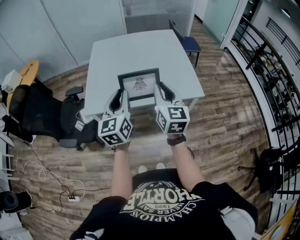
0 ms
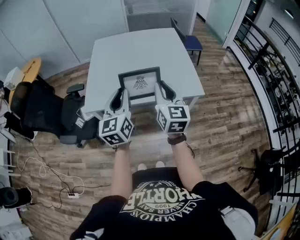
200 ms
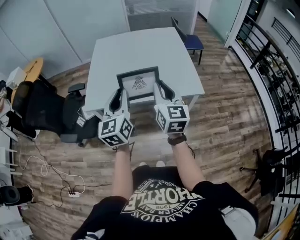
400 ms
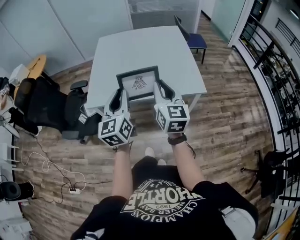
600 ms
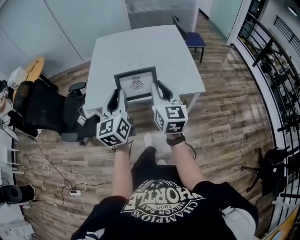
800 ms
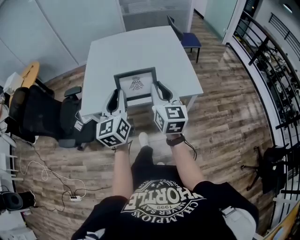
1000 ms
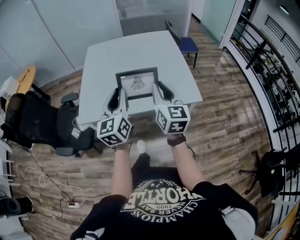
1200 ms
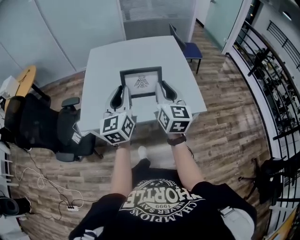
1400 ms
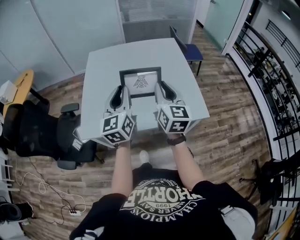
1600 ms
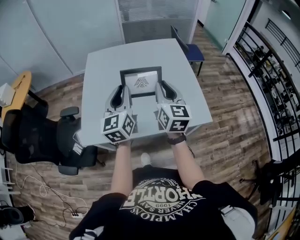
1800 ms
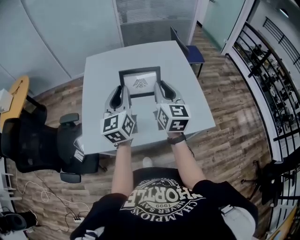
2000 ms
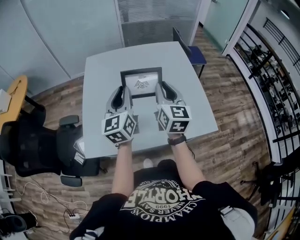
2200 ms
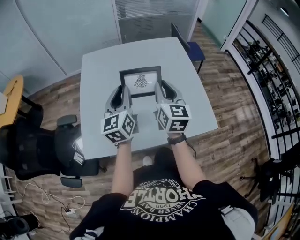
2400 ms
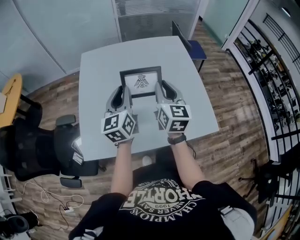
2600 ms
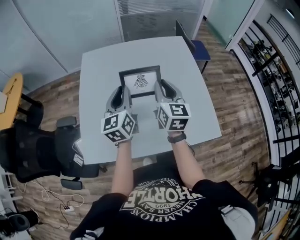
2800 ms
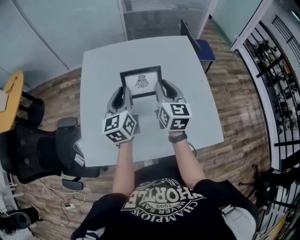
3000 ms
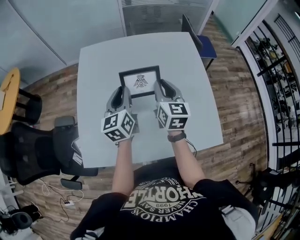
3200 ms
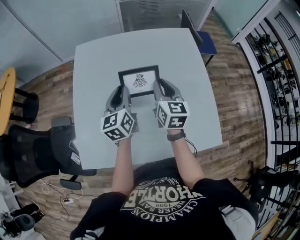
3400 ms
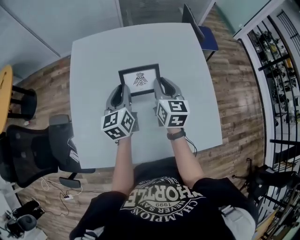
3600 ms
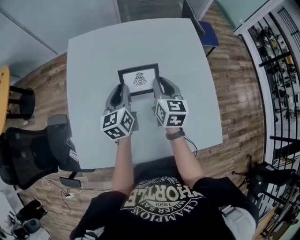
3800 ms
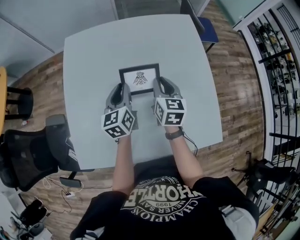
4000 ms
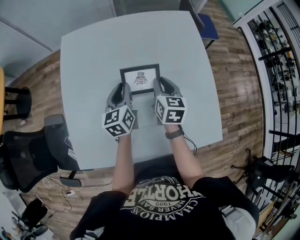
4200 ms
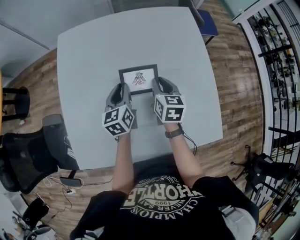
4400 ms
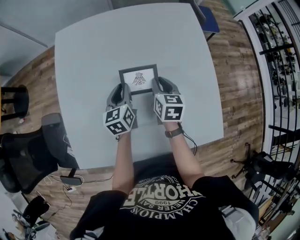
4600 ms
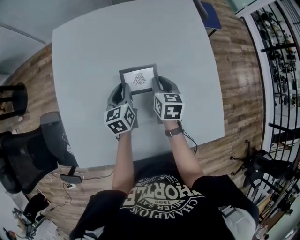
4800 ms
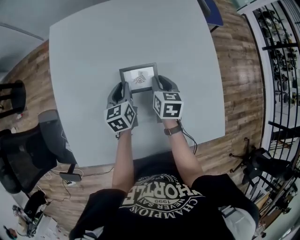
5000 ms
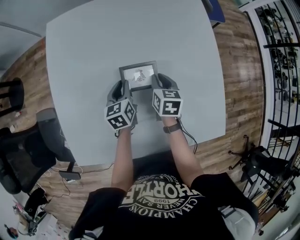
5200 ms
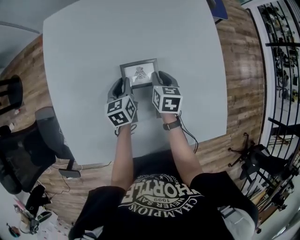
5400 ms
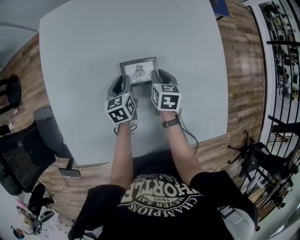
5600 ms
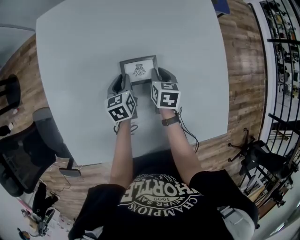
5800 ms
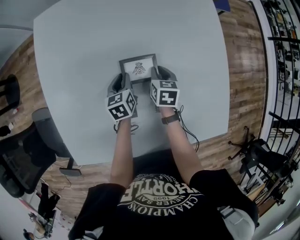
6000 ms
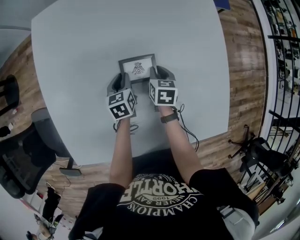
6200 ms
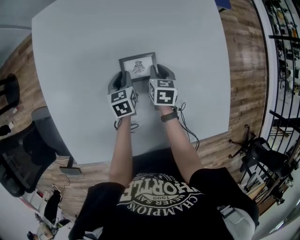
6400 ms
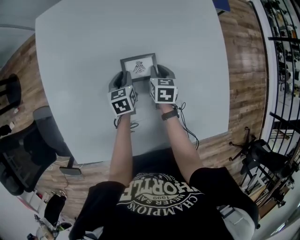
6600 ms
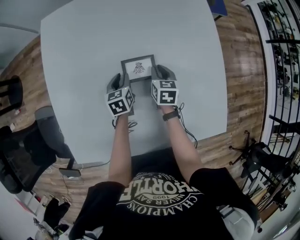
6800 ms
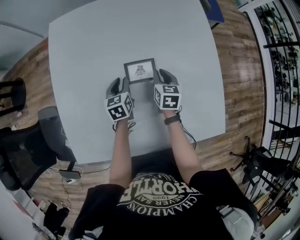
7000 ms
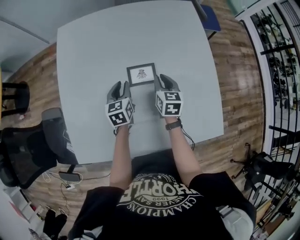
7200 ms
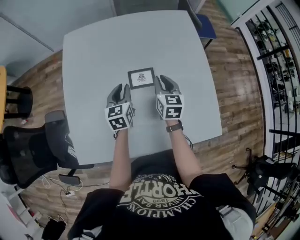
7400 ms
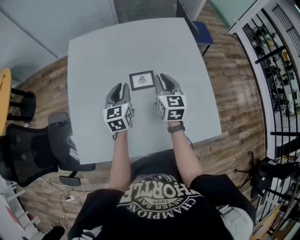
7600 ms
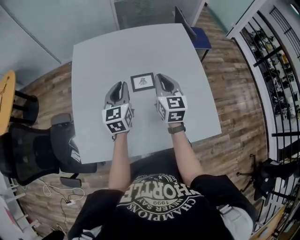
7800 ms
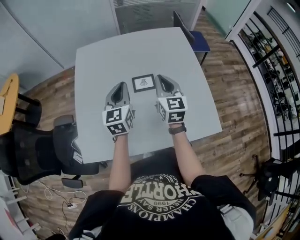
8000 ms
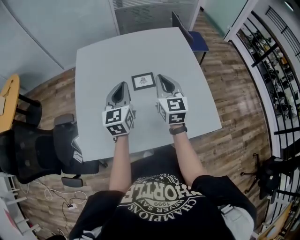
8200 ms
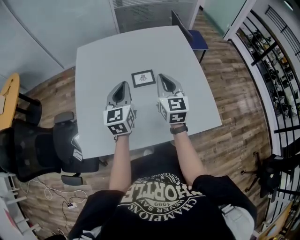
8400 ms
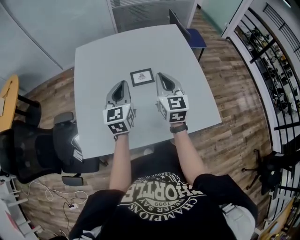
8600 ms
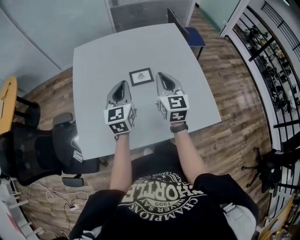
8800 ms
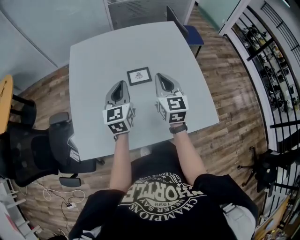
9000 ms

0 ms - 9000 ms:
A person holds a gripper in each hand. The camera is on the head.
0 ms - 1600 ms: The two grippers go roughly 20 cm forward.
1600 ms - 3000 ms: The grippers both shift forward by some 35 cm.
3000 ms - 4400 ms: The grippers both shift downward and forward by approximately 25 cm. The right gripper rotates roughly 20 degrees.
4400 ms - 6000 ms: Both grippers move downward, approximately 20 cm. The left gripper changes its angle by approximately 20 degrees.
6000 ms - 7600 ms: The two grippers go approximately 30 cm upward and backward. The left gripper turns by roughly 30 degrees, while the right gripper points its fingers some 30 degrees further upward.
7600 ms - 9000 ms: Both grippers move backward and upward, about 10 cm.

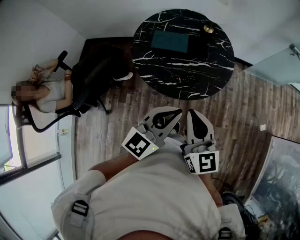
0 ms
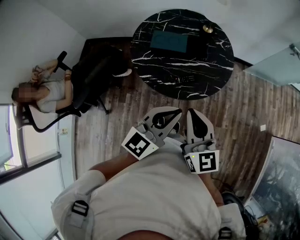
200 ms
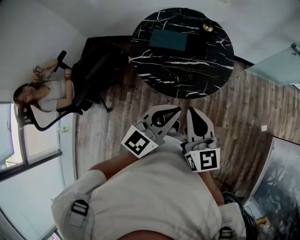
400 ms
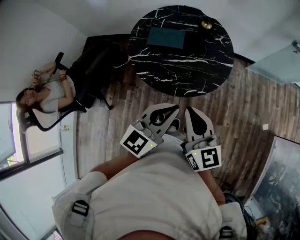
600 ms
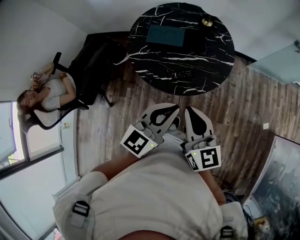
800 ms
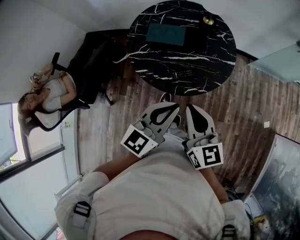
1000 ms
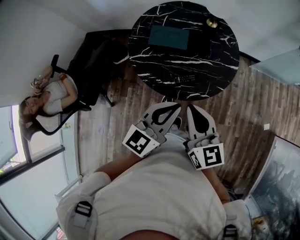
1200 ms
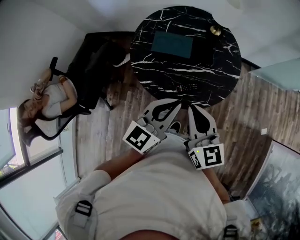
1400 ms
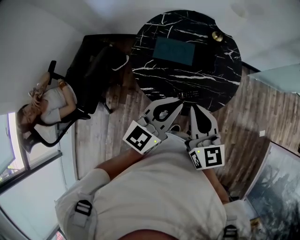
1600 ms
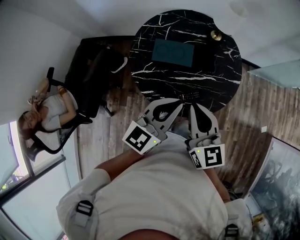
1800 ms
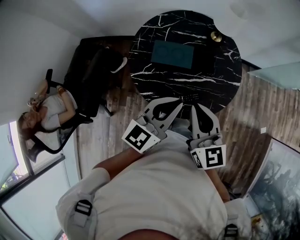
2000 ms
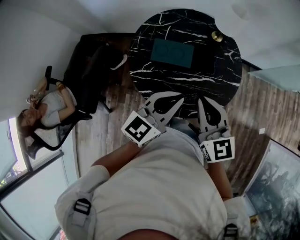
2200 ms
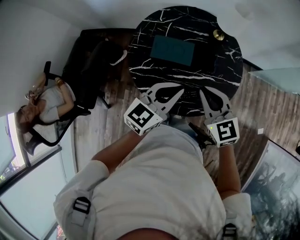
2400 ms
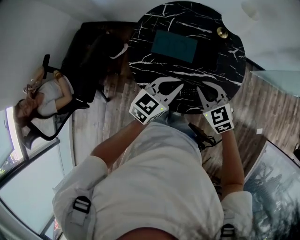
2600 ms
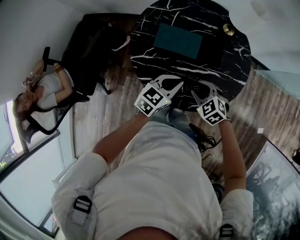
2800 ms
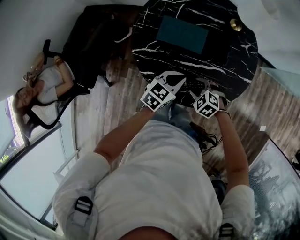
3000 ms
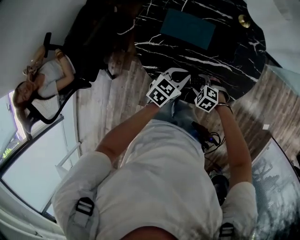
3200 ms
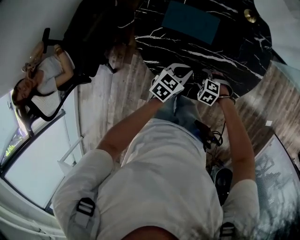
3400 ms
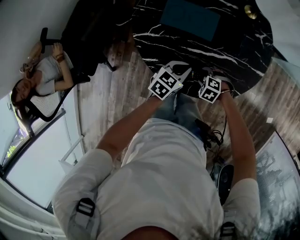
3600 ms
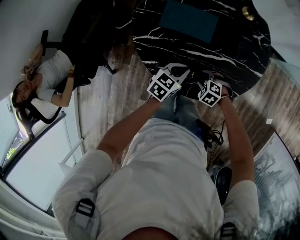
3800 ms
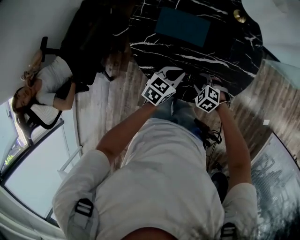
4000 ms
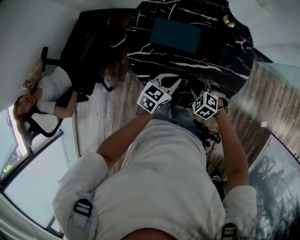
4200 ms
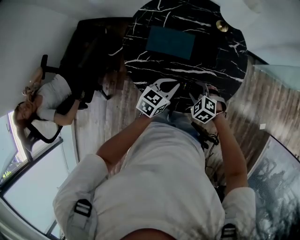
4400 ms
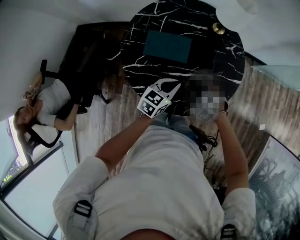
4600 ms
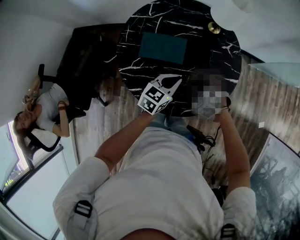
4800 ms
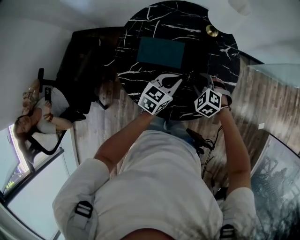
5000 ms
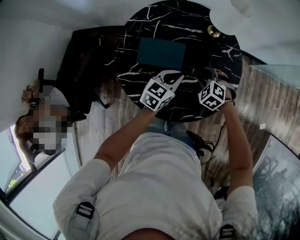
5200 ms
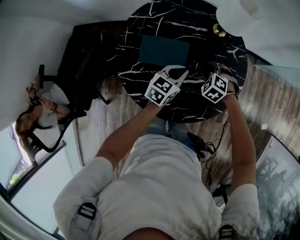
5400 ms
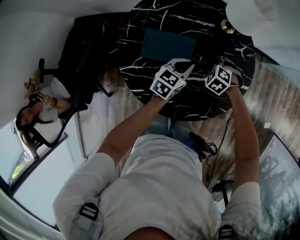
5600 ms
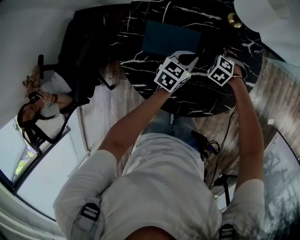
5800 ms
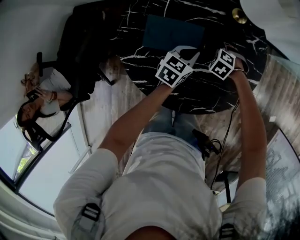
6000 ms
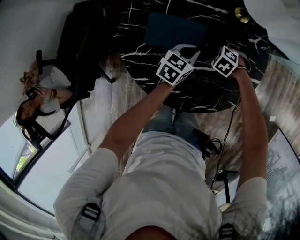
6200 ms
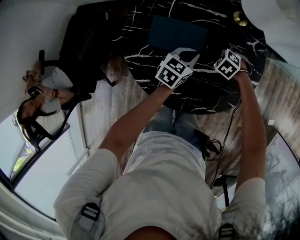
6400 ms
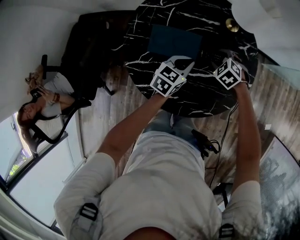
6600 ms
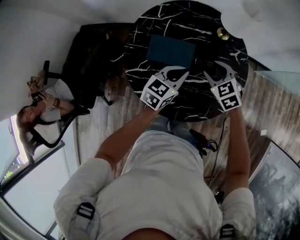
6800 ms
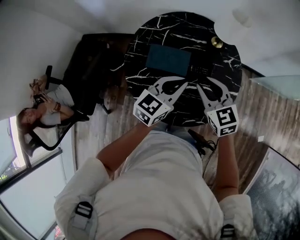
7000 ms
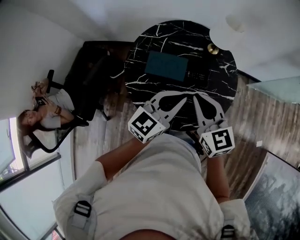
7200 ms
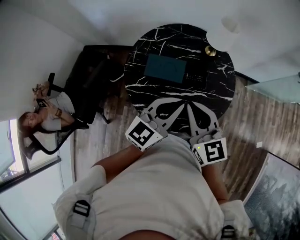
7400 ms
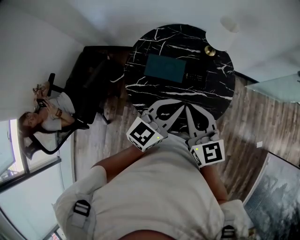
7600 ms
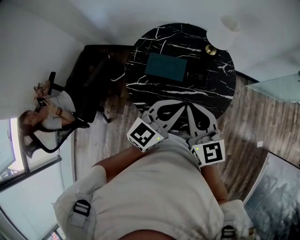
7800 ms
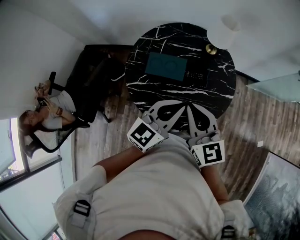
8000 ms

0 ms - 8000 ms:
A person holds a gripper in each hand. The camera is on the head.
0 ms - 1600 ms: Both grippers travel together forward, about 15 cm.
1600 ms - 3200 ms: Both grippers travel together downward, some 35 cm. The left gripper tilts its fingers approximately 30 degrees downward. Meanwhile the right gripper angles its fingers downward, by approximately 60 degrees, and opens.
3200 ms - 4800 ms: The right gripper moves upward, some 10 cm, and rotates about 20 degrees; the left gripper heads upward, covering about 5 cm.
4800 ms - 6400 ms: The left gripper moves about 15 cm, while the right gripper changes place by about 20 cm.
6400 ms - 8000 ms: The grippers both shift upward by some 35 cm. The right gripper angles its fingers upward, by about 60 degrees, and closes, while the left gripper changes its angle by approximately 30 degrees.

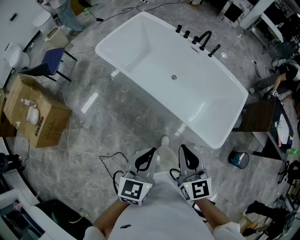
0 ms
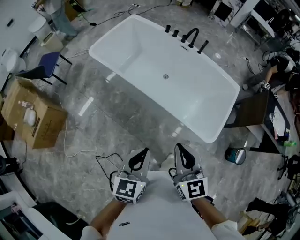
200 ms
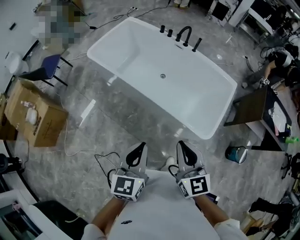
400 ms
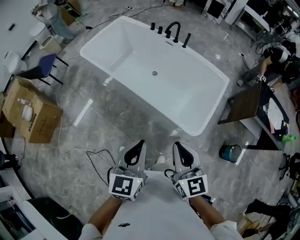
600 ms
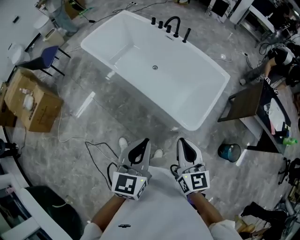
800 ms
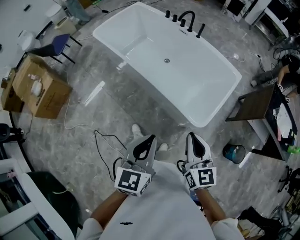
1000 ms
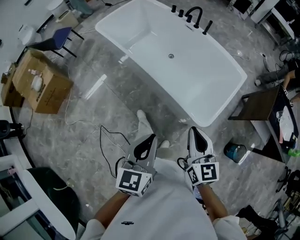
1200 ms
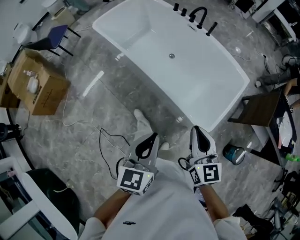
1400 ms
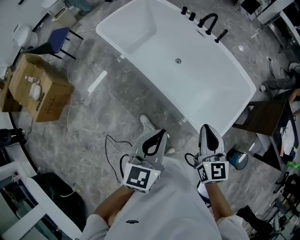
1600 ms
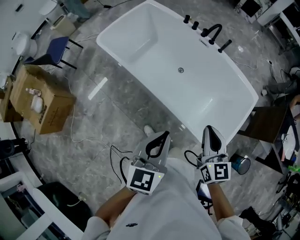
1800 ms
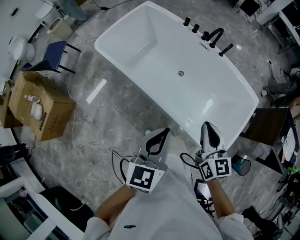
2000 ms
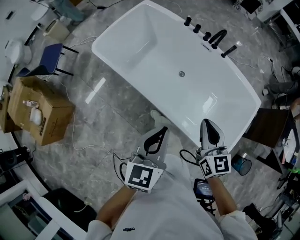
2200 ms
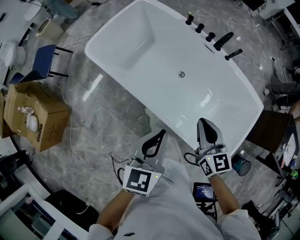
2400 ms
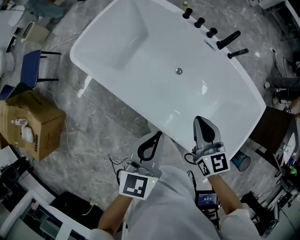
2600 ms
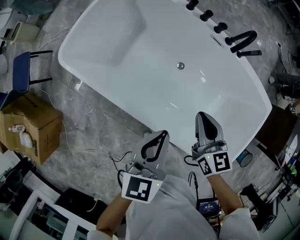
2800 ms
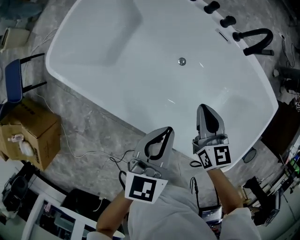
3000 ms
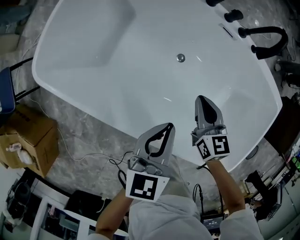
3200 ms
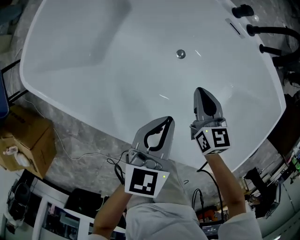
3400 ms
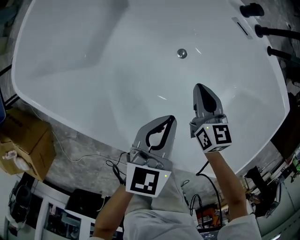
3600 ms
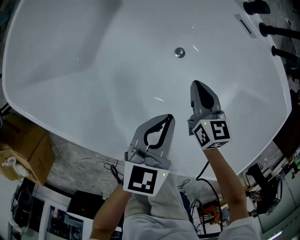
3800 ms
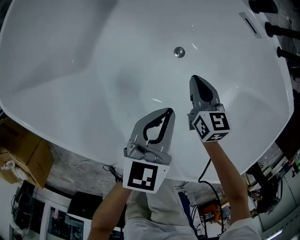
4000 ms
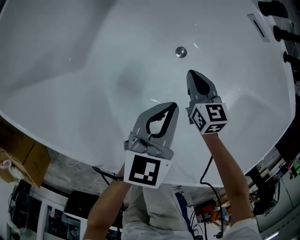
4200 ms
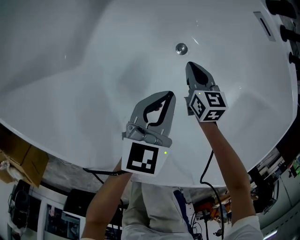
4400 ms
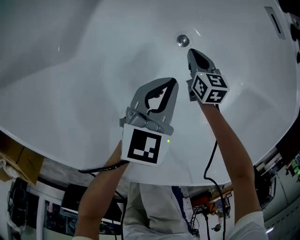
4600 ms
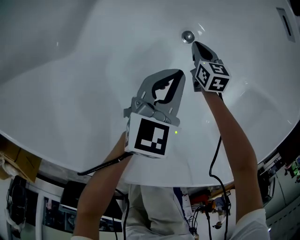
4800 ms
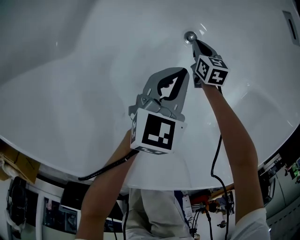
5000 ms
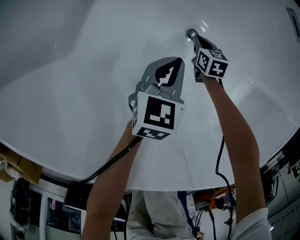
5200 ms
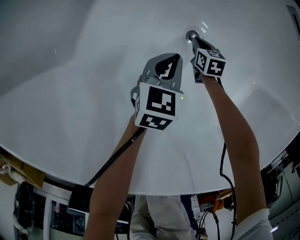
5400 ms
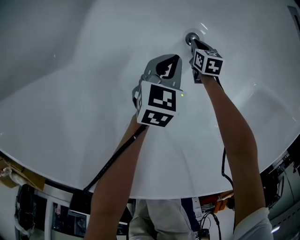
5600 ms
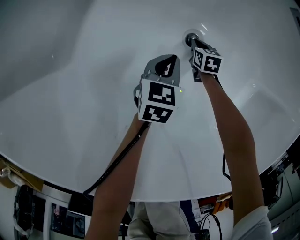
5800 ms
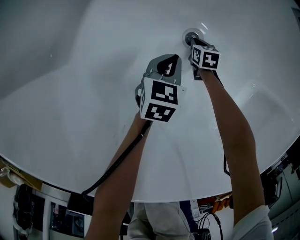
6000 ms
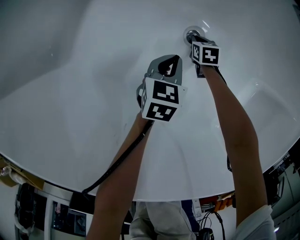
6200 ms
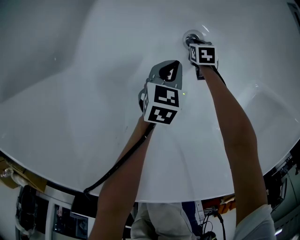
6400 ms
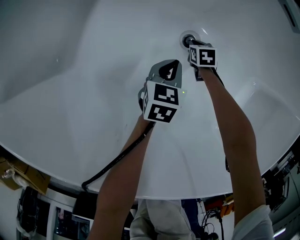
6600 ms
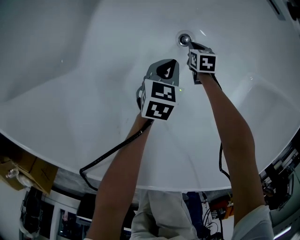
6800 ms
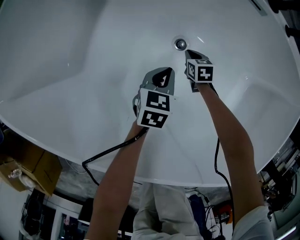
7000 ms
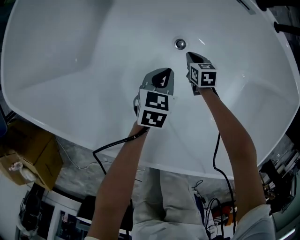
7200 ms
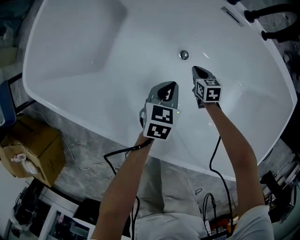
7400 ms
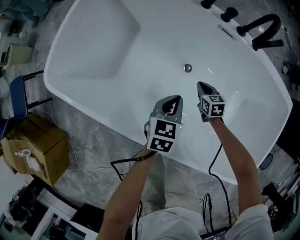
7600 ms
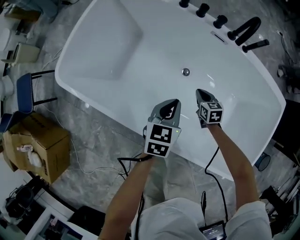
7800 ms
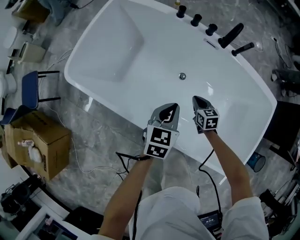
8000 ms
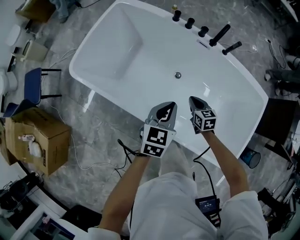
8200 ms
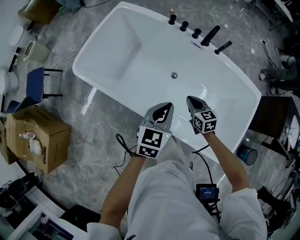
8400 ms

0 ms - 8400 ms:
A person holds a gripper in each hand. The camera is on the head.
0 ms - 1400 ms: The grippers both shift to the right by approximately 25 cm.
1400 ms - 2800 ms: The two grippers travel together, forward, about 60 cm.
2800 ms - 4200 ms: The right gripper travels downward by about 40 cm; the left gripper heads downward and forward, covering about 40 cm.
4200 ms - 5600 ms: The grippers both shift downward by roughly 25 cm. The right gripper rotates roughly 20 degrees.
5600 ms - 7000 ms: Both grippers move upward, roughly 10 cm.
7000 ms - 8400 ms: The grippers both shift upward and backward by approximately 60 cm. The left gripper changes its angle by some 20 degrees. The right gripper turns by about 30 degrees.
